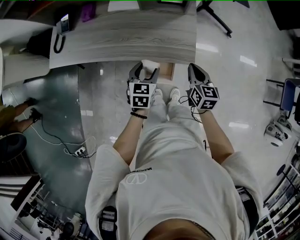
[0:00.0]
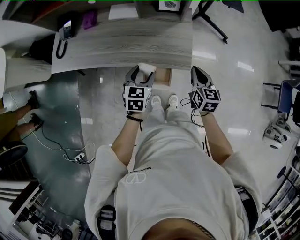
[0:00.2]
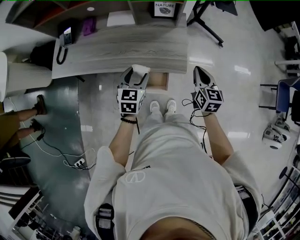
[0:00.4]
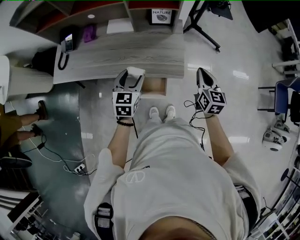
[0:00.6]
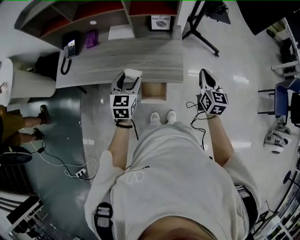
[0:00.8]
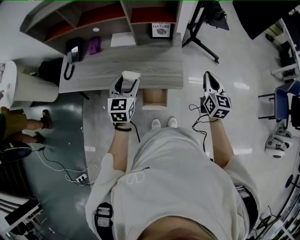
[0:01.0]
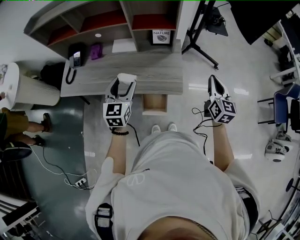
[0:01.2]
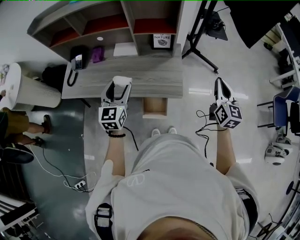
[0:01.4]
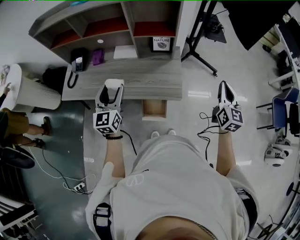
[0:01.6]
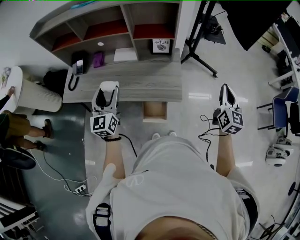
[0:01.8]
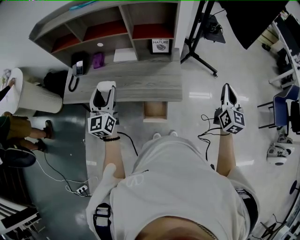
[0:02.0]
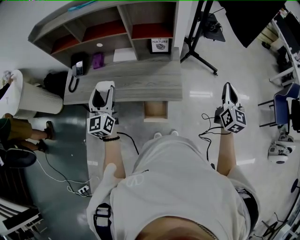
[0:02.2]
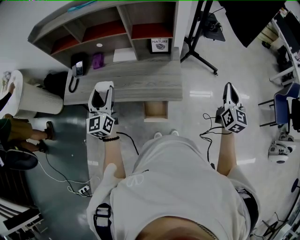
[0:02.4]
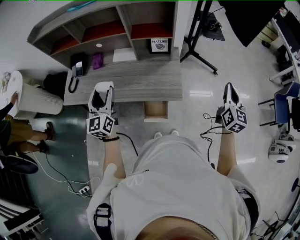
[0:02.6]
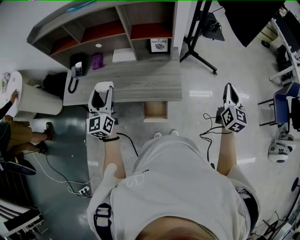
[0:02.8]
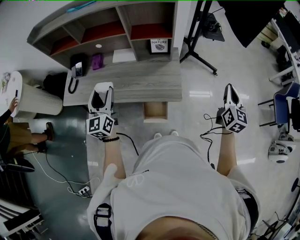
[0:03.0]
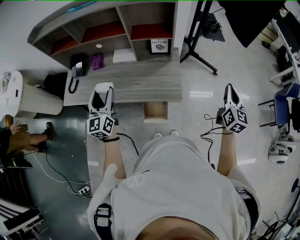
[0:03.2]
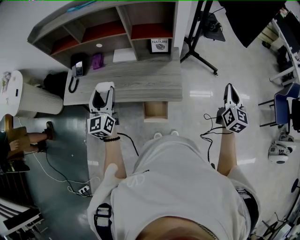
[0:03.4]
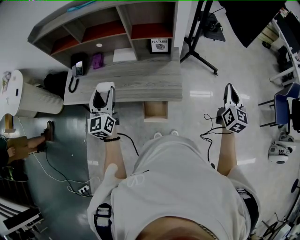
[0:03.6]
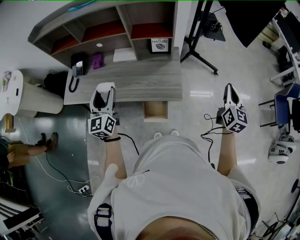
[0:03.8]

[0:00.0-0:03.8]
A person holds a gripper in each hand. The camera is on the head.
0:00.0 to 0:01.2: The left gripper is displaced upward by roughly 20 cm, and changes its angle by roughly 20 degrees. Meanwhile the right gripper travels upward and to the right by approximately 25 cm, and turns by approximately 20 degrees.
0:01.2 to 0:02.6: The right gripper moves to the right, about 10 cm; the left gripper moves to the left and upward, about 10 cm, and swivels about 20 degrees.
0:02.6 to 0:03.8: Neither gripper changes place.

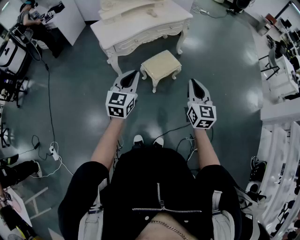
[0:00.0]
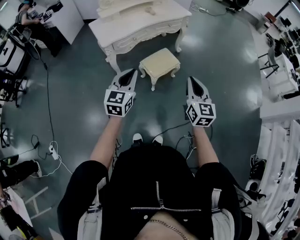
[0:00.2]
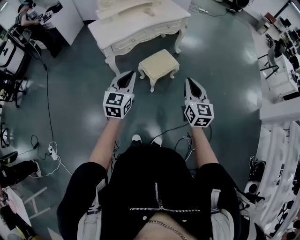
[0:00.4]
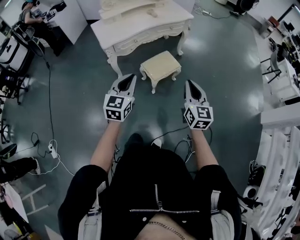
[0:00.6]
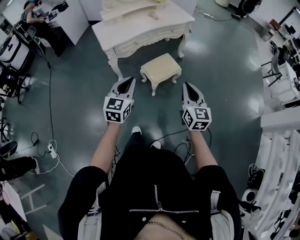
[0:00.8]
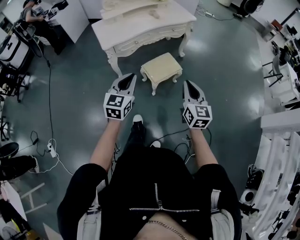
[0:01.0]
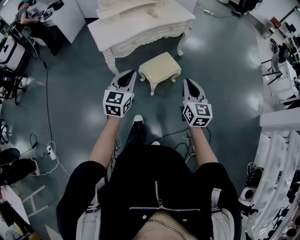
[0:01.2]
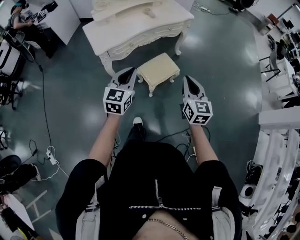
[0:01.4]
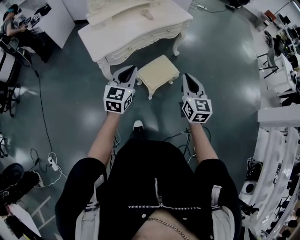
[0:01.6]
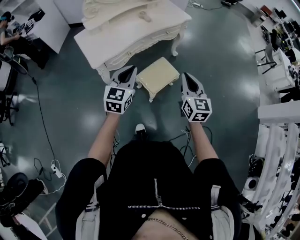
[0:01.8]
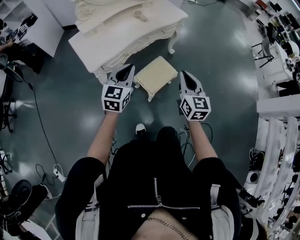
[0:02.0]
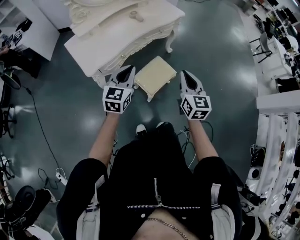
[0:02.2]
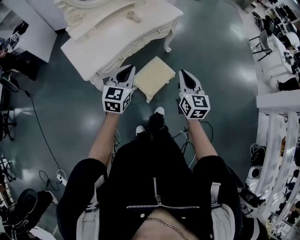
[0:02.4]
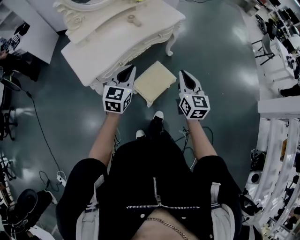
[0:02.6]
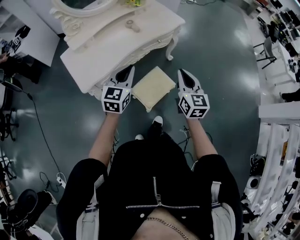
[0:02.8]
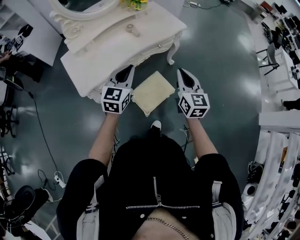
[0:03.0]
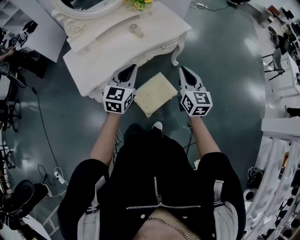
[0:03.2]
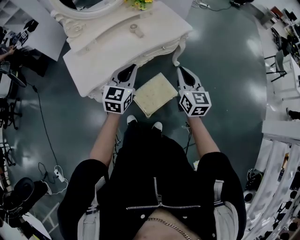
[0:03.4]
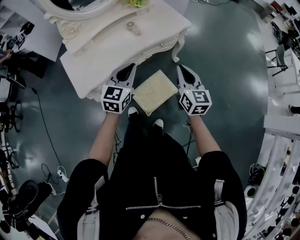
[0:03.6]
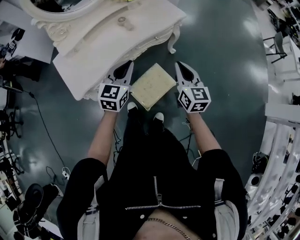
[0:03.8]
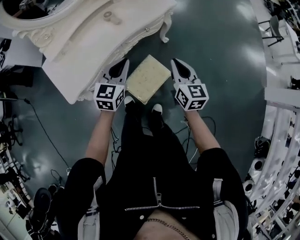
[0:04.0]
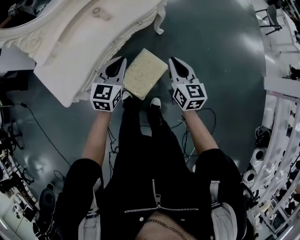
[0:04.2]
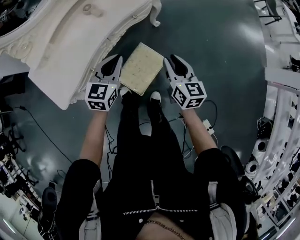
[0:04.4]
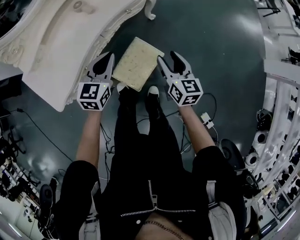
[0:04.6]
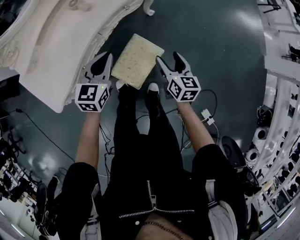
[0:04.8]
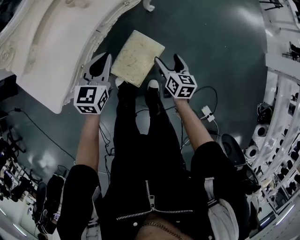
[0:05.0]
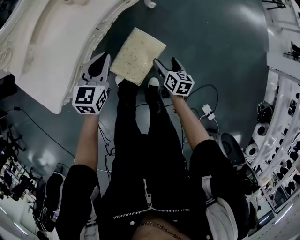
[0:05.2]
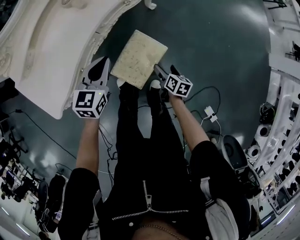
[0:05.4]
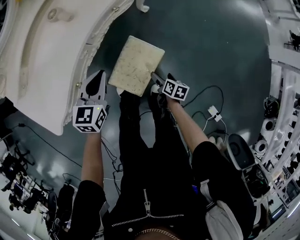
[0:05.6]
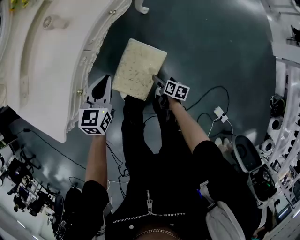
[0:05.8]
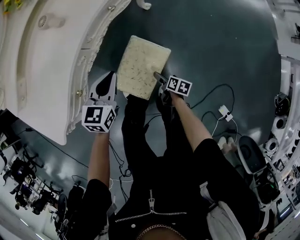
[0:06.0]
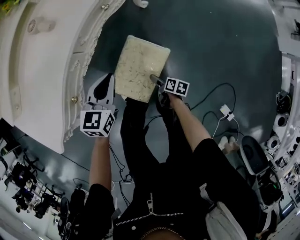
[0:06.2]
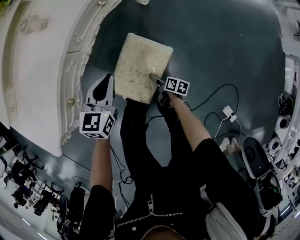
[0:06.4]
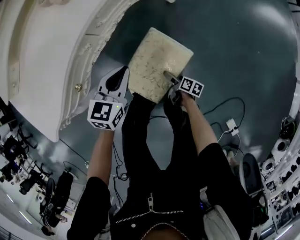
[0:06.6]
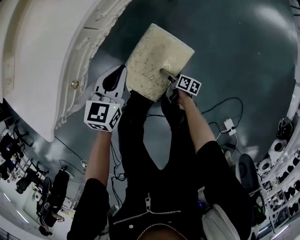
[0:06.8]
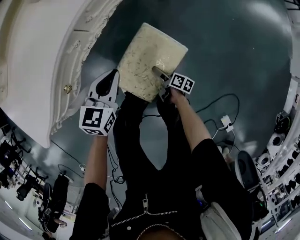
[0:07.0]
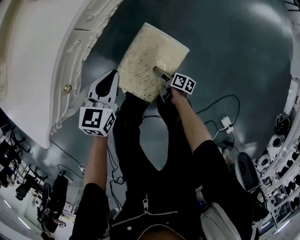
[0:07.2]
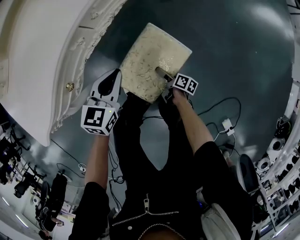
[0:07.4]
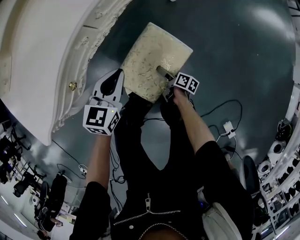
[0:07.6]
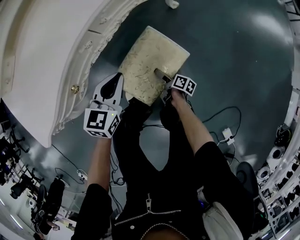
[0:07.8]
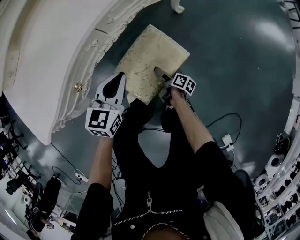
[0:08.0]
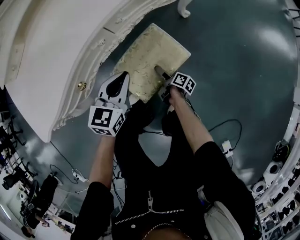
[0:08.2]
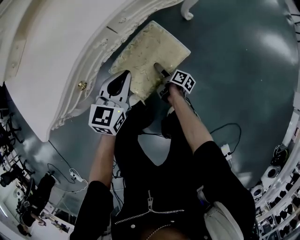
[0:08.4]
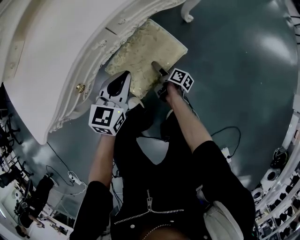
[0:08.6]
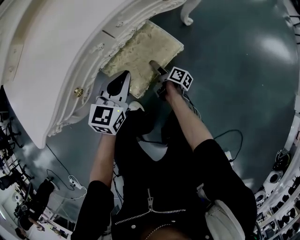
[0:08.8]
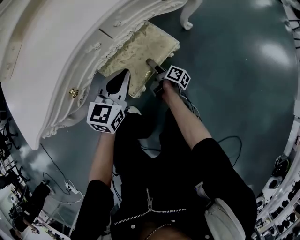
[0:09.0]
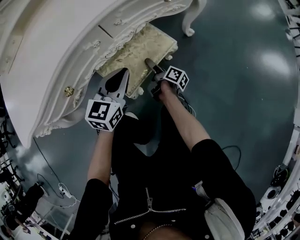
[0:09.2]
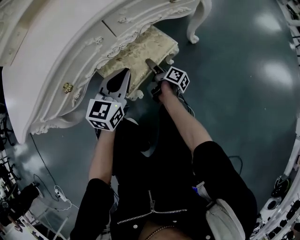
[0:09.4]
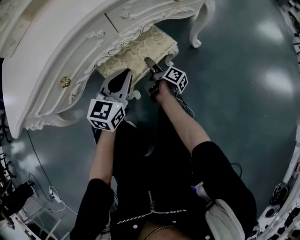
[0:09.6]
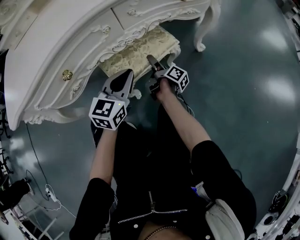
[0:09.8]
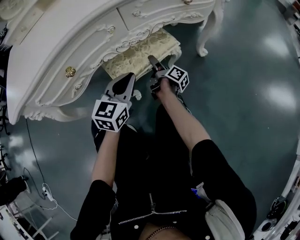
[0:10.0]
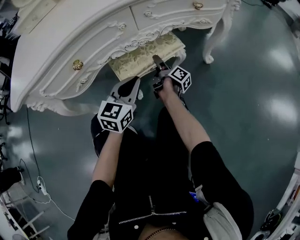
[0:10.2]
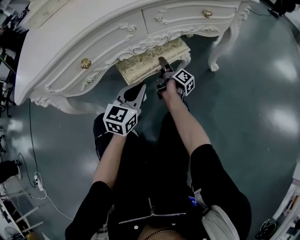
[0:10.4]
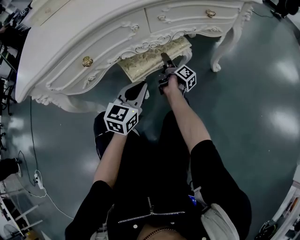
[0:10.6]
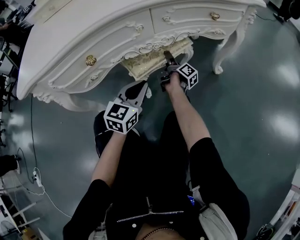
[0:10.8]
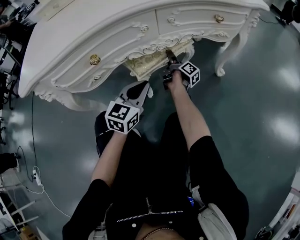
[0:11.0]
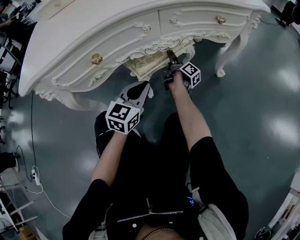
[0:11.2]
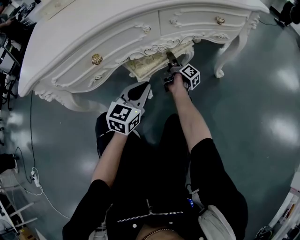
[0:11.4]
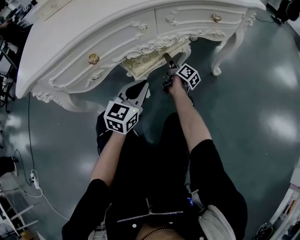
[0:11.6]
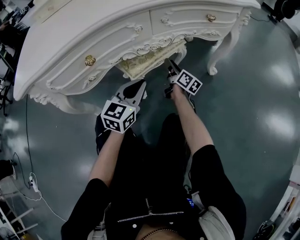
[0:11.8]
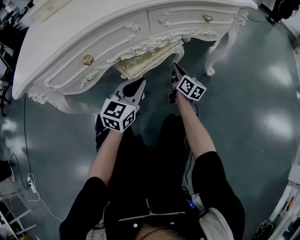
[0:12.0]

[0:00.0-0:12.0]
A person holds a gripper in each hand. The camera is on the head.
0:00.0 to 0:01.6: Both grippers move forward, some 20 cm.
0:01.6 to 0:03.0: Both grippers move forward, some 25 cm.
0:03.0 to 0:04.4: The right gripper is displaced downward by approximately 15 cm. The left gripper heads downward, forward and to the right, covering roughly 15 cm.
0:04.4 to 0:06.0: The right gripper shifts approximately 40 cm downward, points its fingers about 30 degrees further downward, and opens, while the left gripper goes about 20 cm downward.
0:06.0 to 0:07.6: The left gripper travels downward by roughly 10 cm. Meanwhile the right gripper moves downward and to the left, some 15 cm.
0:07.6 to 0:09.0: The left gripper moves forward, roughly 5 cm. Meanwhile the right gripper travels forward and to the left by roughly 20 cm.
0:09.0 to 0:10.4: The left gripper shifts approximately 10 cm downward. The right gripper travels forward and to the left by about 10 cm.
0:10.4 to 0:12.0: The right gripper shifts roughly 10 cm upward and to the right, rolls counterclockwise, seen from behind, by approximately 50 degrees, and closes up.

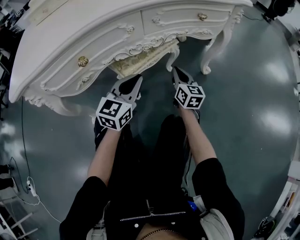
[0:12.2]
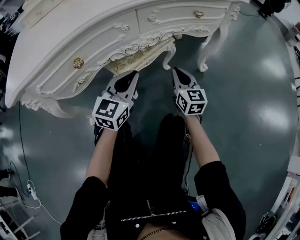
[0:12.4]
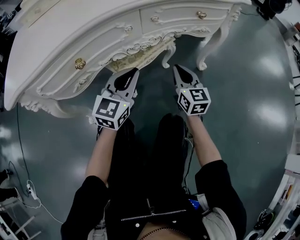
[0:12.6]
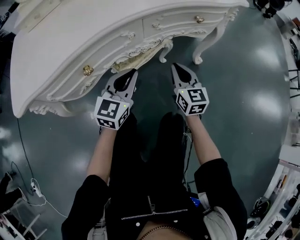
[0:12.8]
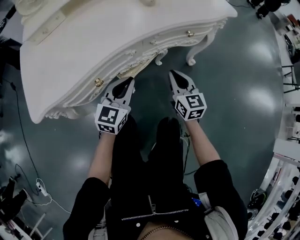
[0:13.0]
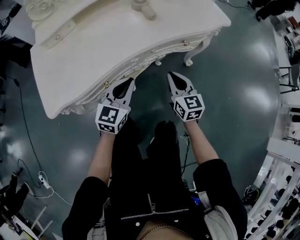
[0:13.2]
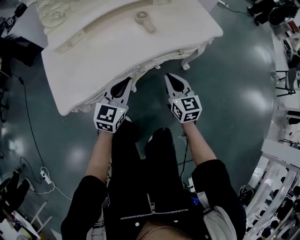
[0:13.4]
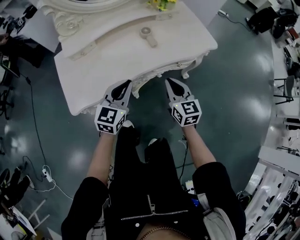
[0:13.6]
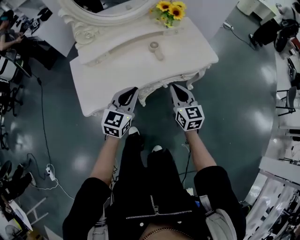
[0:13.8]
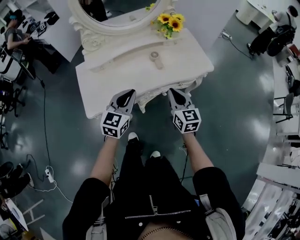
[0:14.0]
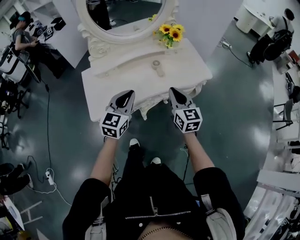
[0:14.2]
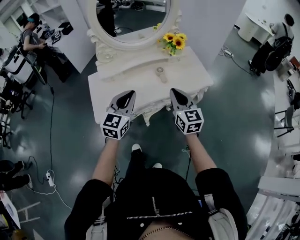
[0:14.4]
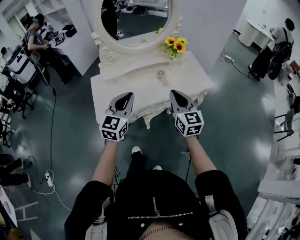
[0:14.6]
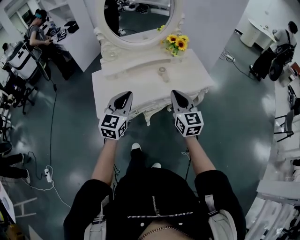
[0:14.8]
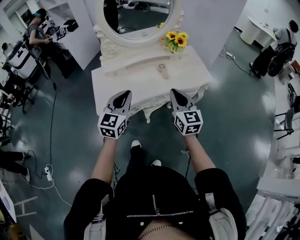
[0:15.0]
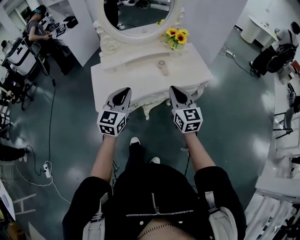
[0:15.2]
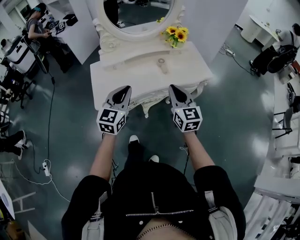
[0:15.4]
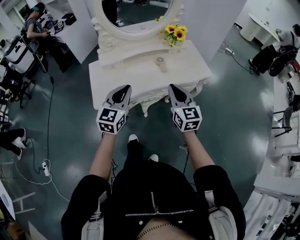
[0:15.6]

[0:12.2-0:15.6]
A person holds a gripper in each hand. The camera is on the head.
0:12.2 to 0:13.8: The grippers both shift upward by approximately 50 cm.
0:13.8 to 0:15.6: Both grippers move upward and backward, about 15 cm.

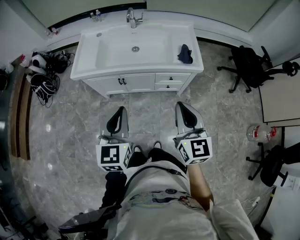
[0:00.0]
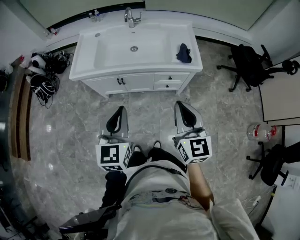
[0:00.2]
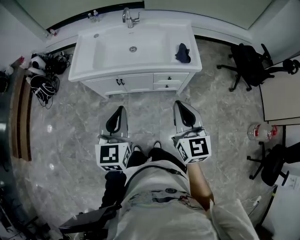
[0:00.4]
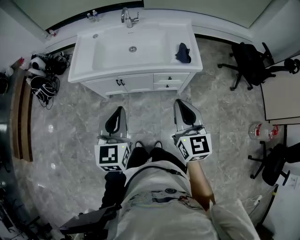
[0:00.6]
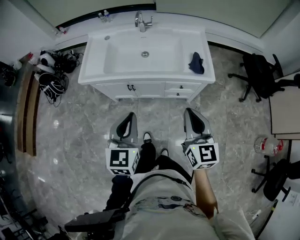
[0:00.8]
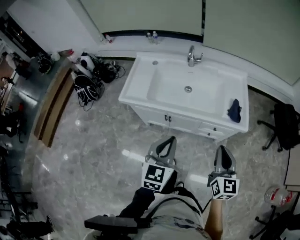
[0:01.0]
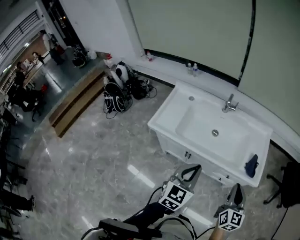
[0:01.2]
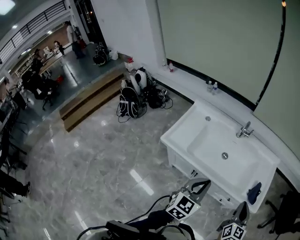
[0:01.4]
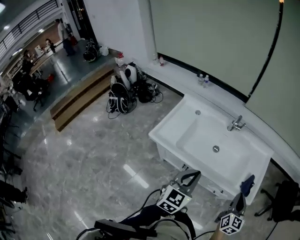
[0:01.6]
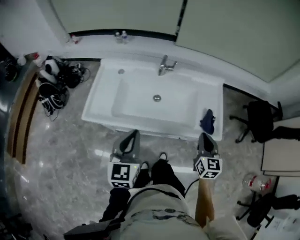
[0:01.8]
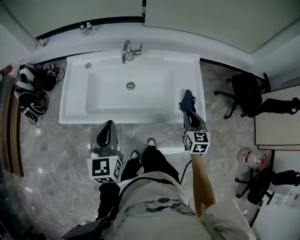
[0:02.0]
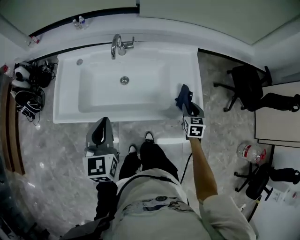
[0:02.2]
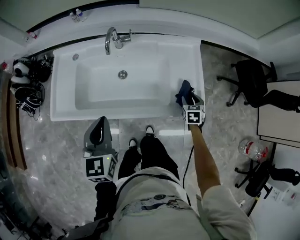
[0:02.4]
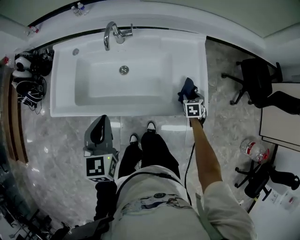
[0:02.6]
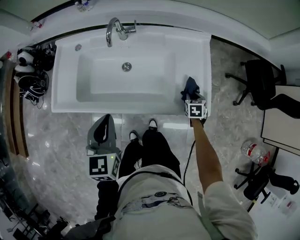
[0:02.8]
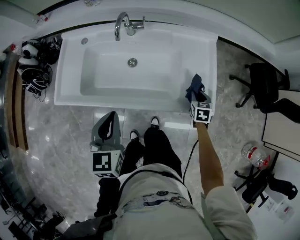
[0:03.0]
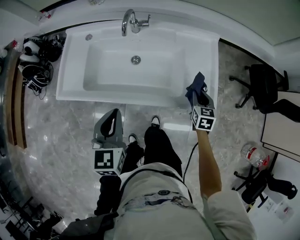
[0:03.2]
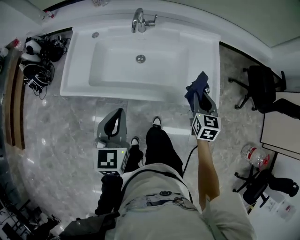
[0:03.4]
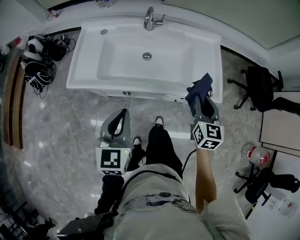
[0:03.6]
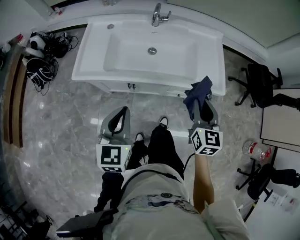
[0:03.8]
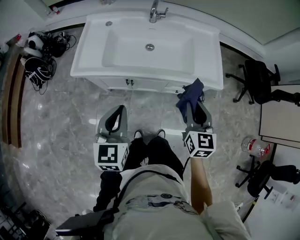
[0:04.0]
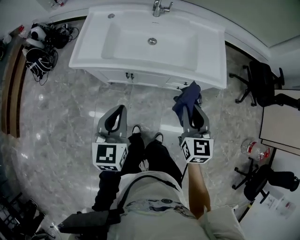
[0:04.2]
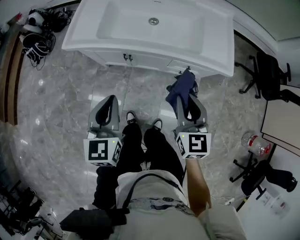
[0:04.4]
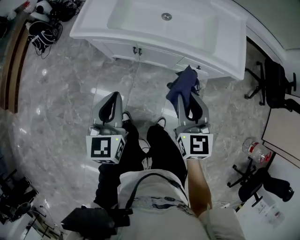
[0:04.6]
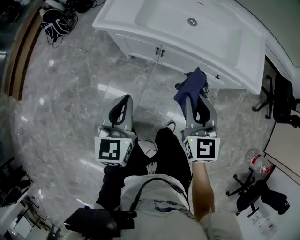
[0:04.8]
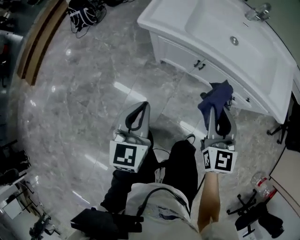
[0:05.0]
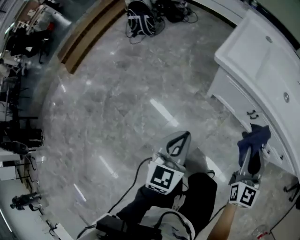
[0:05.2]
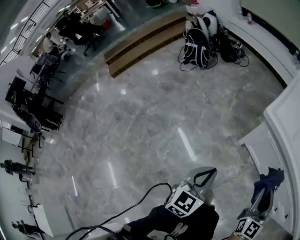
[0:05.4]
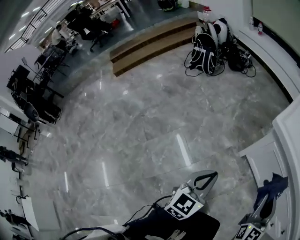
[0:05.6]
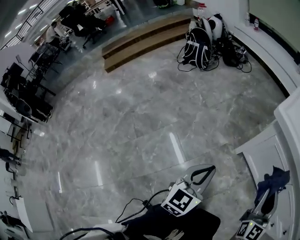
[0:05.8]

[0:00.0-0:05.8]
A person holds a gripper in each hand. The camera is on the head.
0:00.0 to 0:01.4: The grippers both shift forward by roughly 20 cm.
0:01.4 to 0:02.8: The right gripper shifts roughly 40 cm downward, to the right and forward, points its fingers some 50 degrees further downward, and opens. The left gripper travels forward, downward and to the right by about 15 cm.
0:02.8 to 0:04.4: The left gripper heads backward, covering roughly 20 cm; the right gripper goes roughly 40 cm backward, upward and to the left, and points its fingers some 40 degrees further upward.
0:04.4 to 0:05.8: The left gripper goes some 50 cm to the left and downward. Meanwhile the right gripper heads to the left, downward and forward, covering some 50 cm, and changes its angle by roughly 30 degrees.
